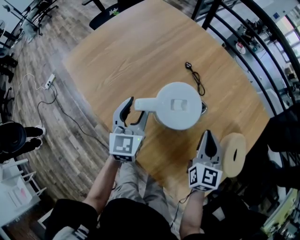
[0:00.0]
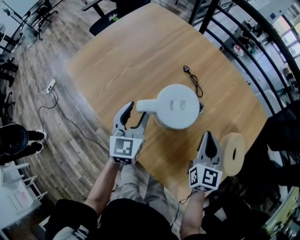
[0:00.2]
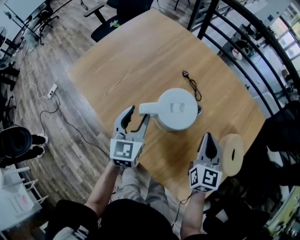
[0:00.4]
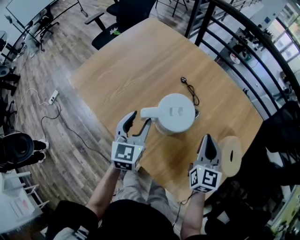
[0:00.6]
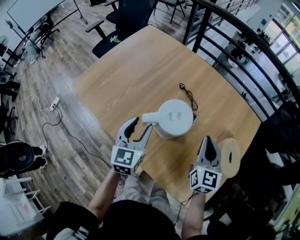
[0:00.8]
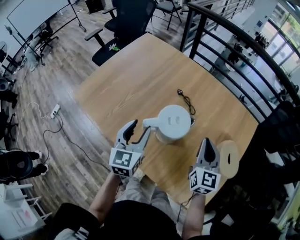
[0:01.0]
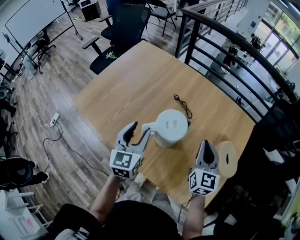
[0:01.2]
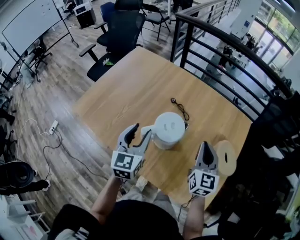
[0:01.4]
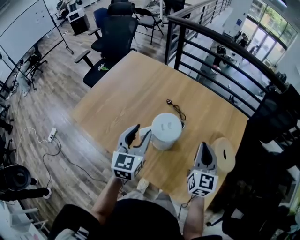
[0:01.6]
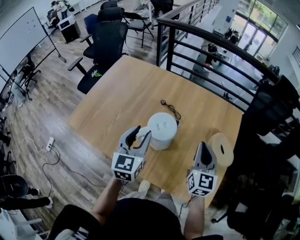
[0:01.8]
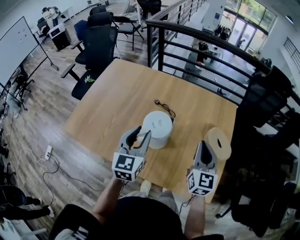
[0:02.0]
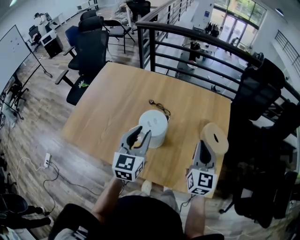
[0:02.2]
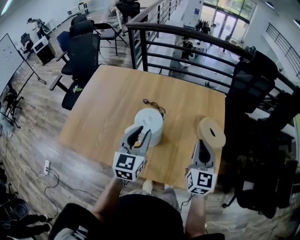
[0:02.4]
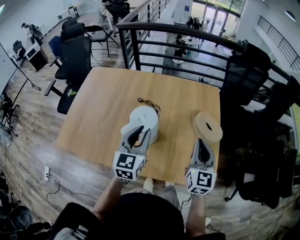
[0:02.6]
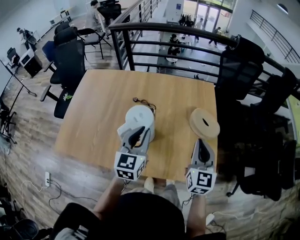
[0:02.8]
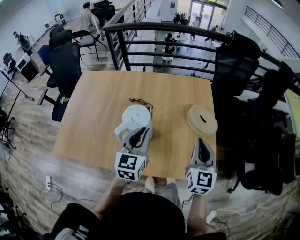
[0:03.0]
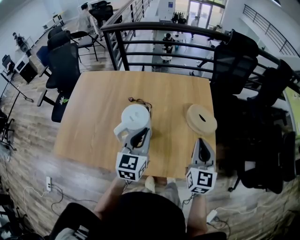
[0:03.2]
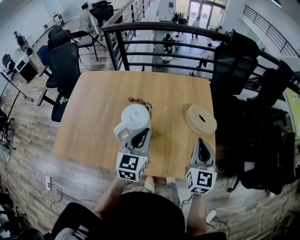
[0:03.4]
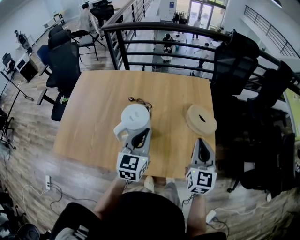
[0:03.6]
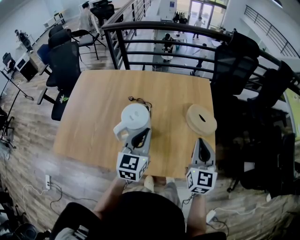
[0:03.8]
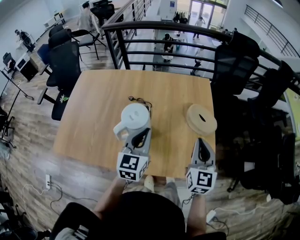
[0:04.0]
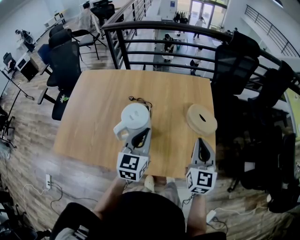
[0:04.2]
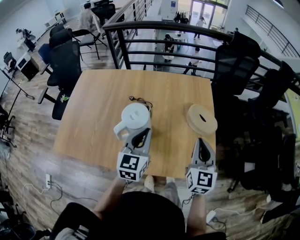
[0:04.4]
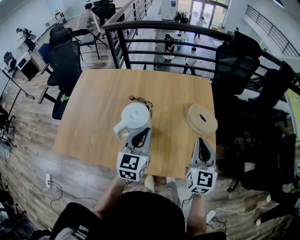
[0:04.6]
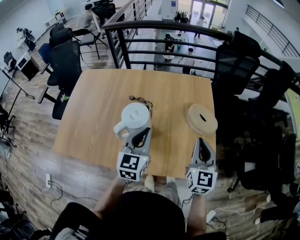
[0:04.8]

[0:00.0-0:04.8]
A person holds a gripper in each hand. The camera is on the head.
0:00.0 to 0:01.6: Both grippers travel together upward, some 15 cm.
0:01.6 to 0:03.2: The left gripper shifts by some 15 cm, turns by some 30 degrees, and closes. The right gripper moves about 15 cm, and turns by about 20 degrees.
0:03.2 to 0:04.8: Both grippers stay about where they are.

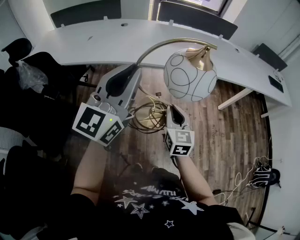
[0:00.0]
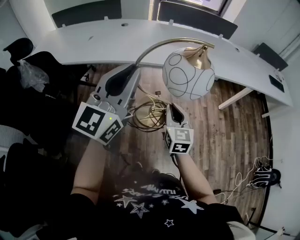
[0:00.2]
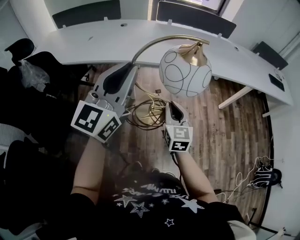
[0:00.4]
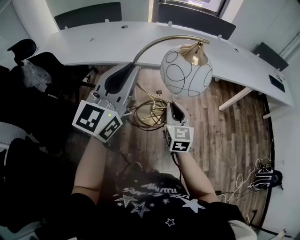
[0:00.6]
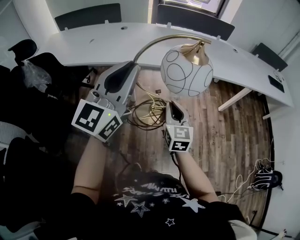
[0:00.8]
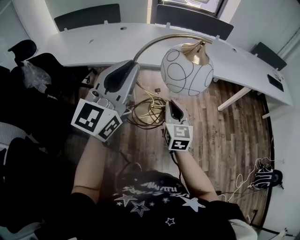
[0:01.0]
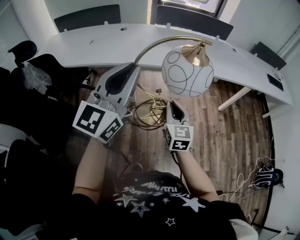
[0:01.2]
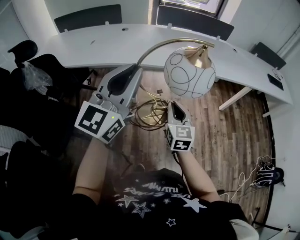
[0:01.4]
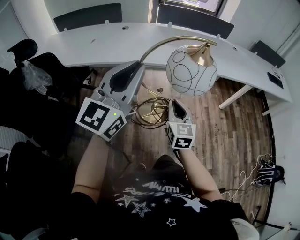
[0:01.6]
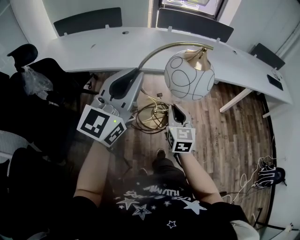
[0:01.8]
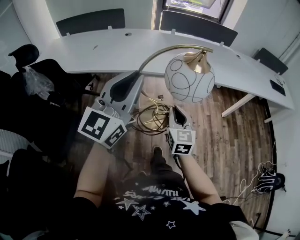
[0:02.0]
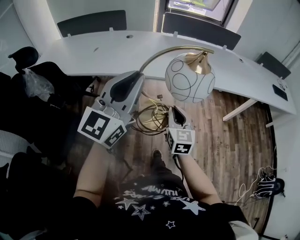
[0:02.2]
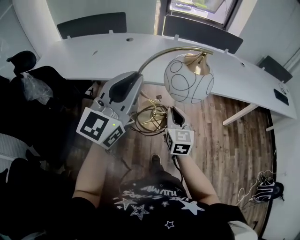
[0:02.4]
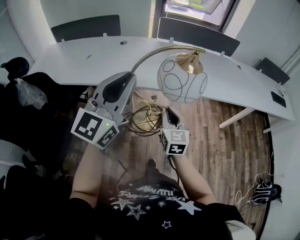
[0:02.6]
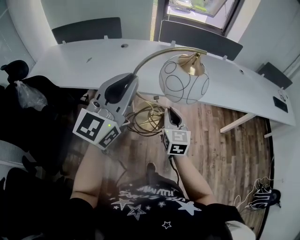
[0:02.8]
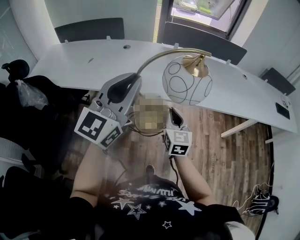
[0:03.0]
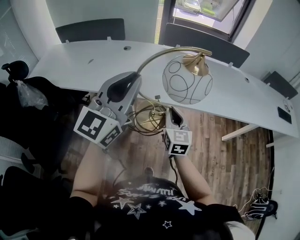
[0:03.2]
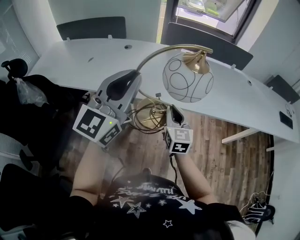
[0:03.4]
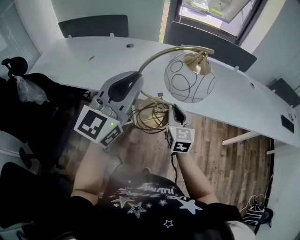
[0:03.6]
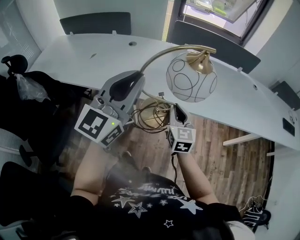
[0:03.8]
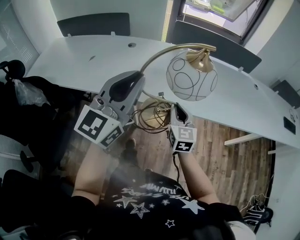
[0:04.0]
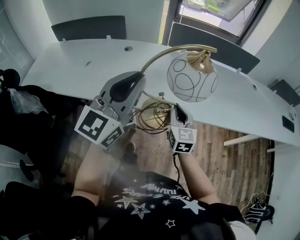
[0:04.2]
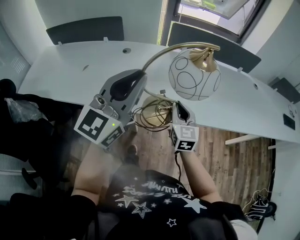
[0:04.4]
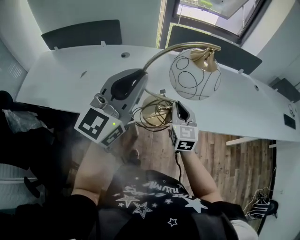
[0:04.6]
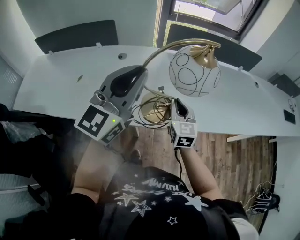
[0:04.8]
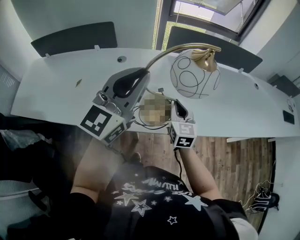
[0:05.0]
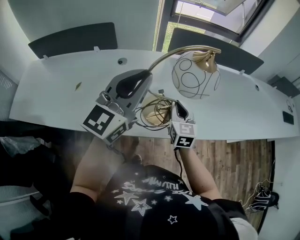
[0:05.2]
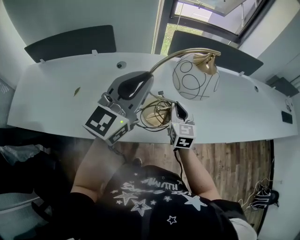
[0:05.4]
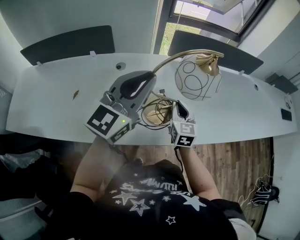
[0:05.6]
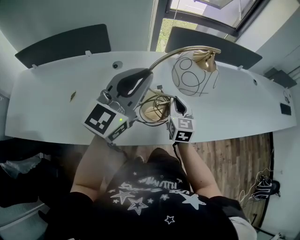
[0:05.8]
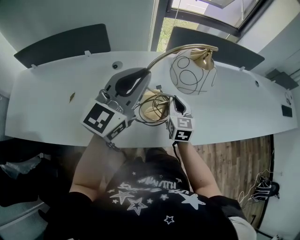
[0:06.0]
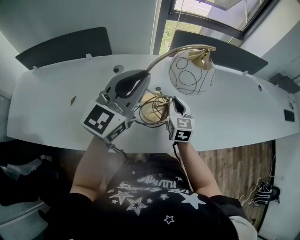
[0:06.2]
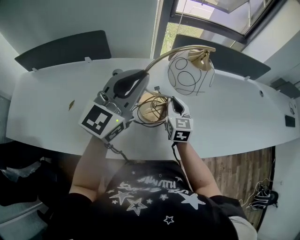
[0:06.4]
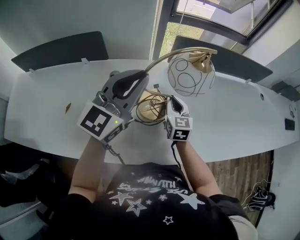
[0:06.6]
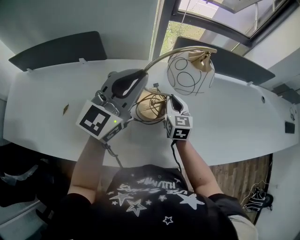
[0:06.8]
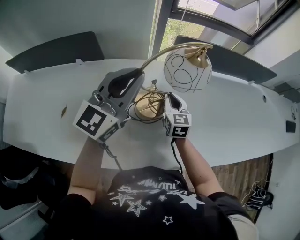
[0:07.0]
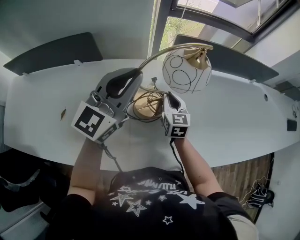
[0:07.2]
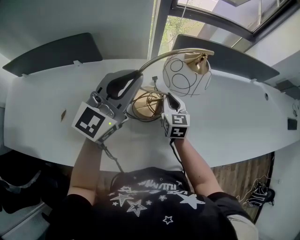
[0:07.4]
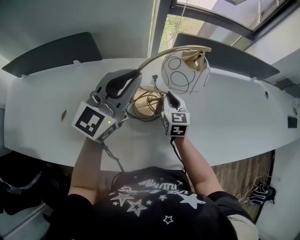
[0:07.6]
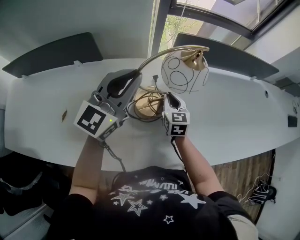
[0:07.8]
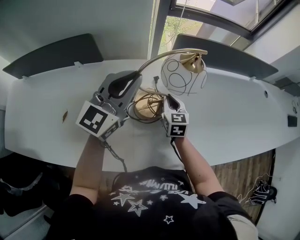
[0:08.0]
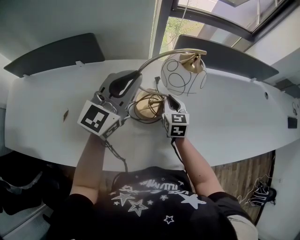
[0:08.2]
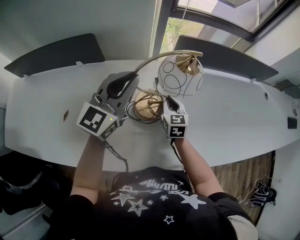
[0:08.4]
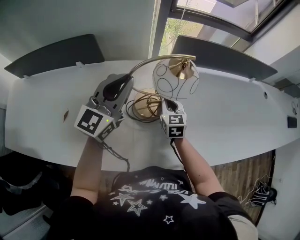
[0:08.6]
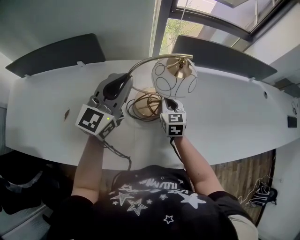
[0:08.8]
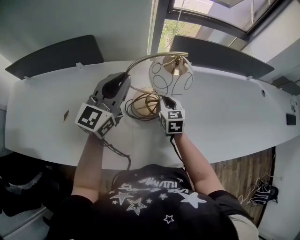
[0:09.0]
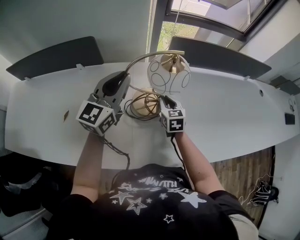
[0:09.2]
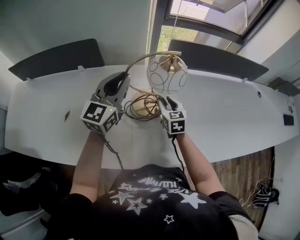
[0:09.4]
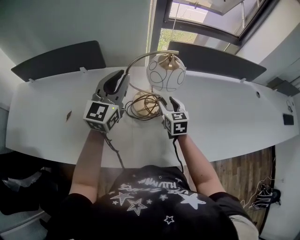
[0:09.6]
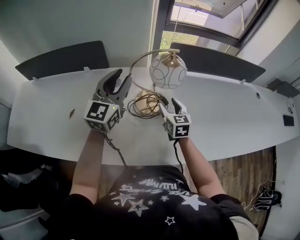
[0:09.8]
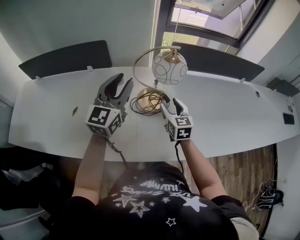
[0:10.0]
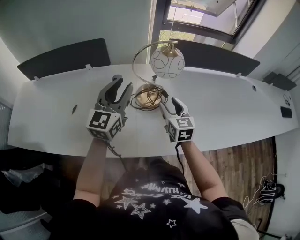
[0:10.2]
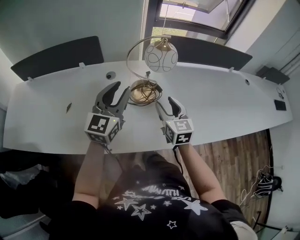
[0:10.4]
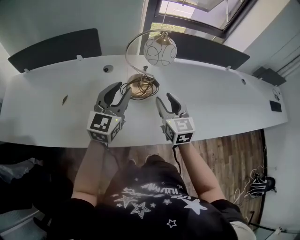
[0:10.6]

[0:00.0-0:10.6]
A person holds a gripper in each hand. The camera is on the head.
0:00.0 to 0:01.6: The grippers make only small movements.
0:01.6 to 0:03.0: Both grippers move forward, approximately 20 cm.
0:03.0 to 0:04.6: Both grippers move forward, approximately 20 cm.
0:04.6 to 0:06.0: The two grippers go some 20 cm forward and to the left.
0:06.0 to 0:07.6: The right gripper goes some 15 cm forward and to the left. The left gripper heads forward, covering some 15 cm.
0:07.6 to 0:09.0: There are only small adjustments of the grippers.
0:09.0 to 0:10.6: The right gripper shifts approximately 20 cm backward and upward, and opens up, while the left gripper travels backward by roughly 15 cm, and opens.

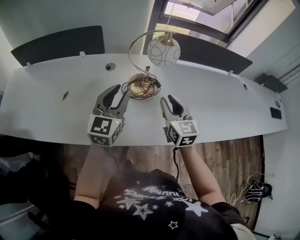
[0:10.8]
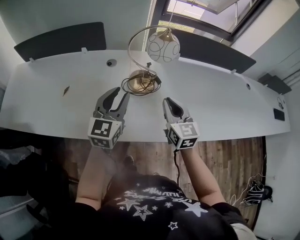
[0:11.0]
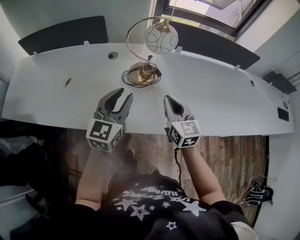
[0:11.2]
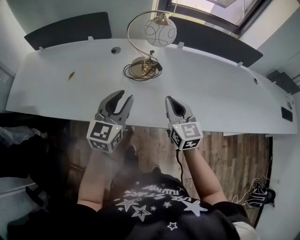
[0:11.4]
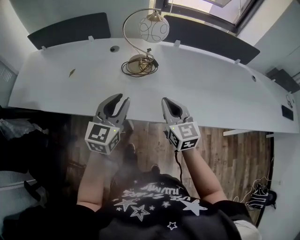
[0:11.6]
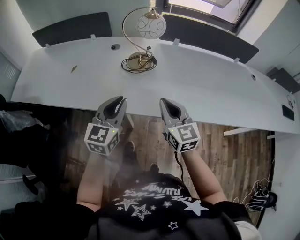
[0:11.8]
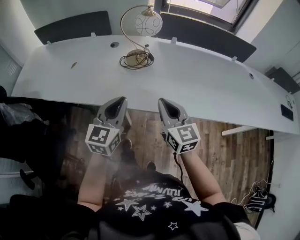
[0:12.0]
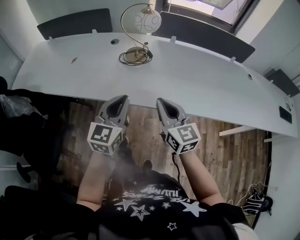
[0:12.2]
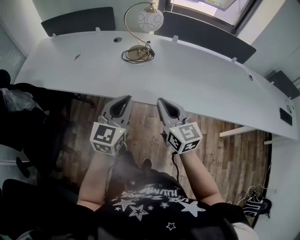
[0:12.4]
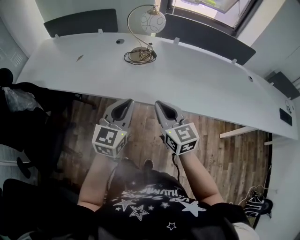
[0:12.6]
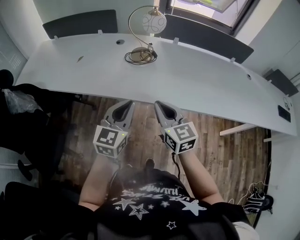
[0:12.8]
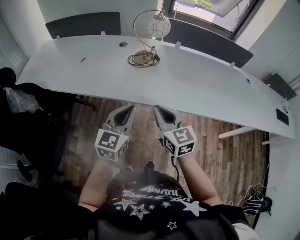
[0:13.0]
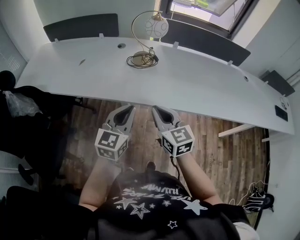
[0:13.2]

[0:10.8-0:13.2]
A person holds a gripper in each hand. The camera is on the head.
0:10.8 to 0:12.0: The right gripper shifts approximately 20 cm backward, and closes up. The left gripper shifts approximately 25 cm backward and to the right, and closes its fingers.
0:12.0 to 0:13.2: The right gripper shifts some 10 cm backward and to the left; the left gripper moves backward, some 10 cm.

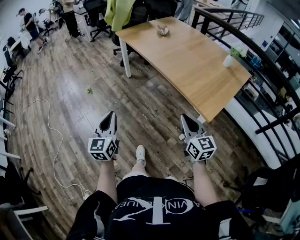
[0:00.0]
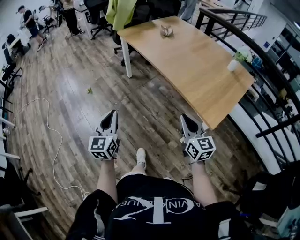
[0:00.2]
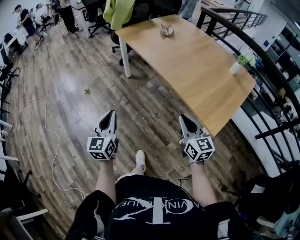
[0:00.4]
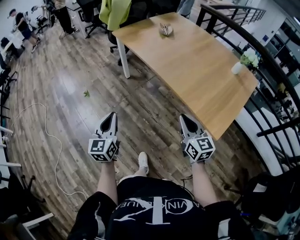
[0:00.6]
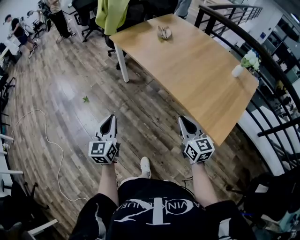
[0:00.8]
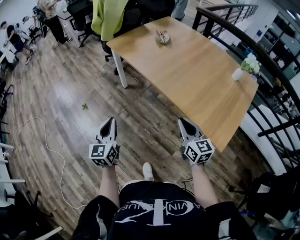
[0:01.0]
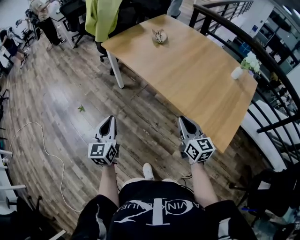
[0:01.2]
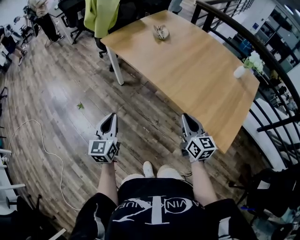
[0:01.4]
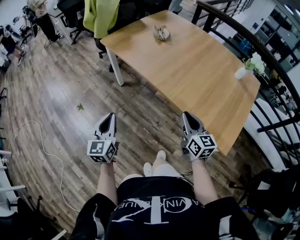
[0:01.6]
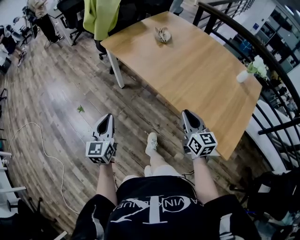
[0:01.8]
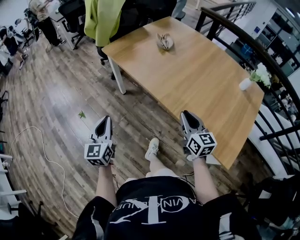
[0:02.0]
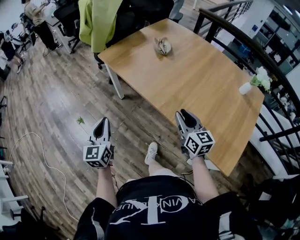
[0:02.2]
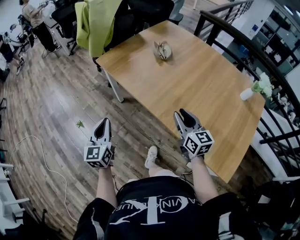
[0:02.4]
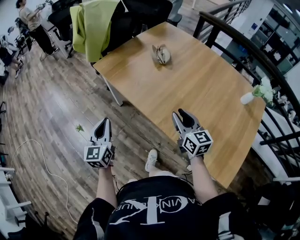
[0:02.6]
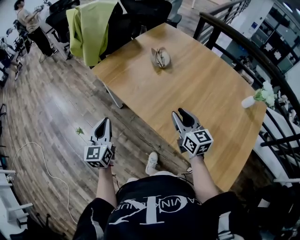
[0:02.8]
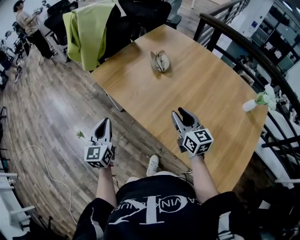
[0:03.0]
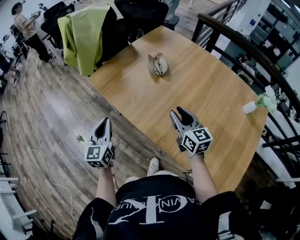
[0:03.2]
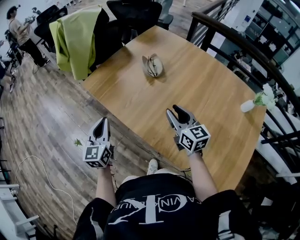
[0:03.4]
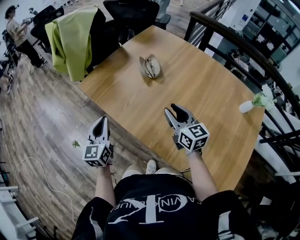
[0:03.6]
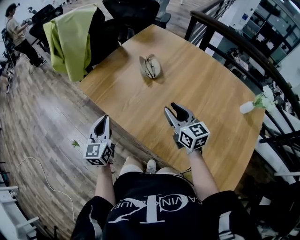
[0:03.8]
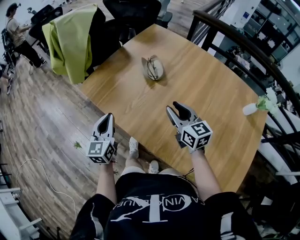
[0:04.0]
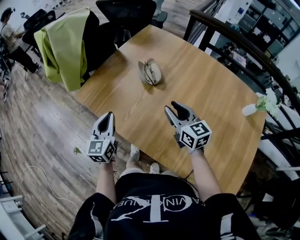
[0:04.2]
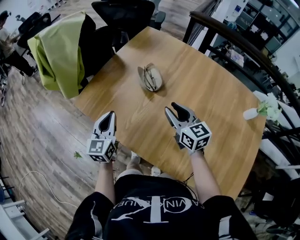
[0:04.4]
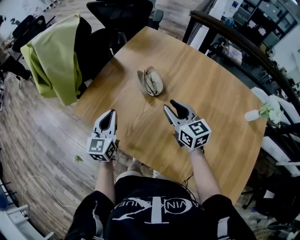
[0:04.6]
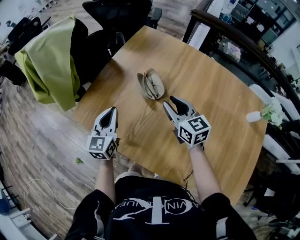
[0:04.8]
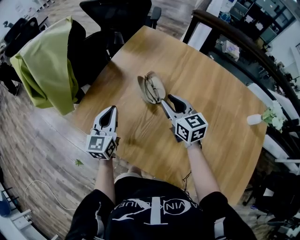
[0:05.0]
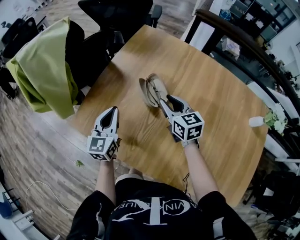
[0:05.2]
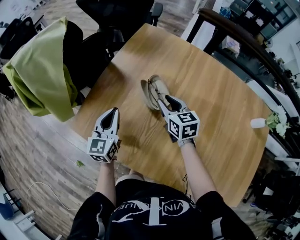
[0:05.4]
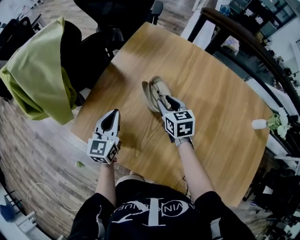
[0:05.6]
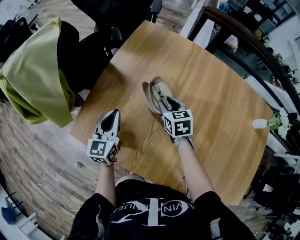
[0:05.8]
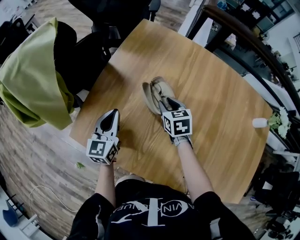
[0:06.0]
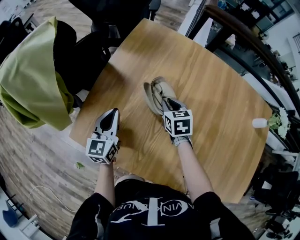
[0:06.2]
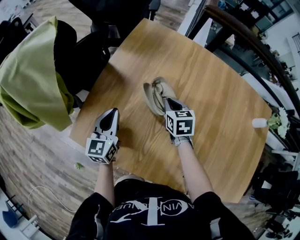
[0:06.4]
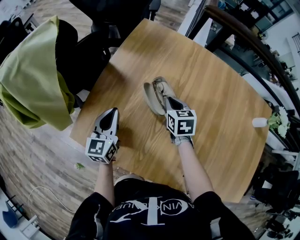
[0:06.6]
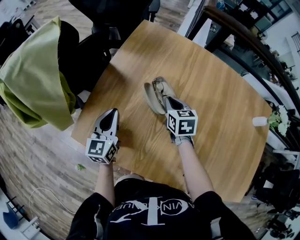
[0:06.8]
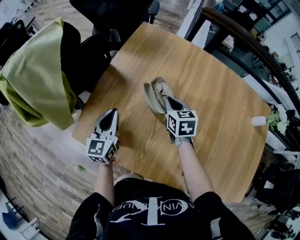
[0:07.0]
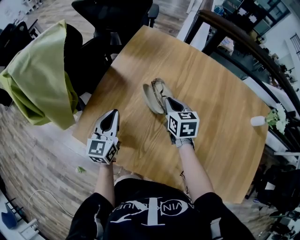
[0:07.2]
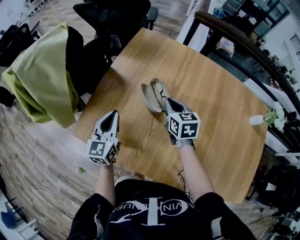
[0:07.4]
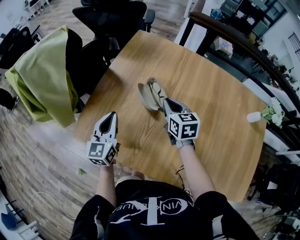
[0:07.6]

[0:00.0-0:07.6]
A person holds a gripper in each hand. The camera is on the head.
0:00.0 to 0:01.6: The two grippers go about 30 cm forward.
0:01.6 to 0:03.0: Both grippers move forward, about 30 cm.
0:03.0 to 0:04.6: The grippers both shift forward by some 25 cm.
0:04.6 to 0:06.0: The right gripper moves forward and downward, about 20 cm, and changes its angle by approximately 30 degrees. Meanwhile the left gripper moves forward, approximately 15 cm.
0:06.0 to 0:07.6: The right gripper goes approximately 10 cm upward, and closes up, while the left gripper moves backward, some 5 cm.
